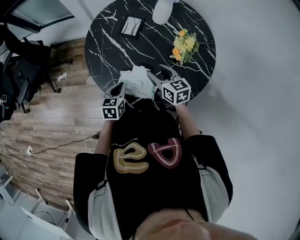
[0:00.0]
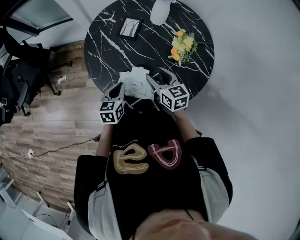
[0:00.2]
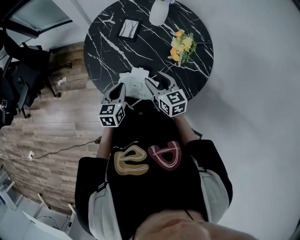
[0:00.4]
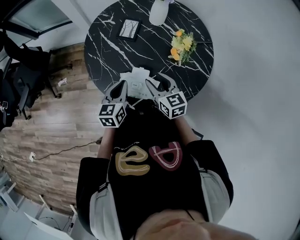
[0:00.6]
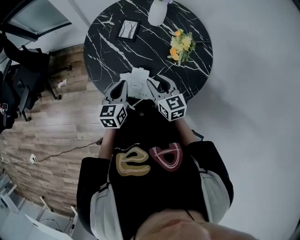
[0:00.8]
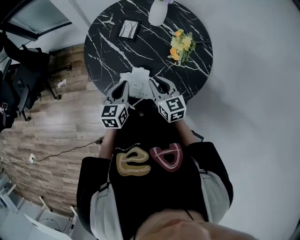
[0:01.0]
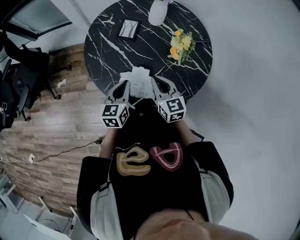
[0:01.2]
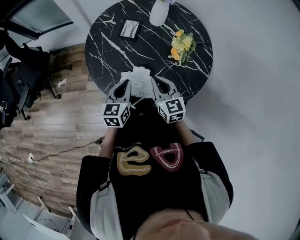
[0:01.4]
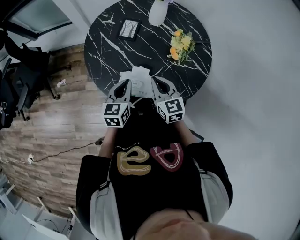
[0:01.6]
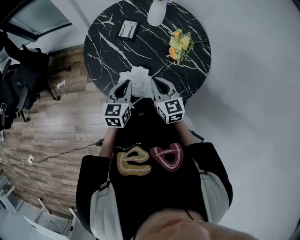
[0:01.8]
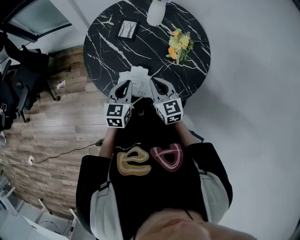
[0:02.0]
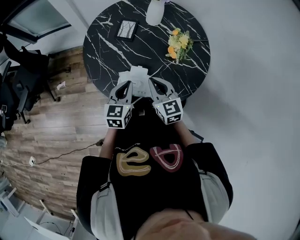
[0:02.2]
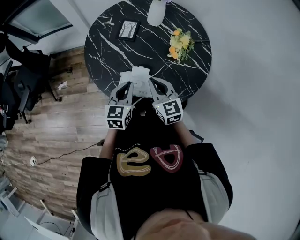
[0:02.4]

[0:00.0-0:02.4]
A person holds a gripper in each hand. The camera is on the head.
0:00.0 to 0:01.2: The right gripper moves roughly 5 cm, and closes, while the left gripper travels upward by some 10 cm.
0:01.2 to 0:02.4: There are only small adjustments of the grippers.

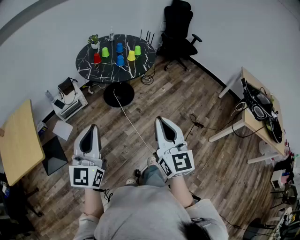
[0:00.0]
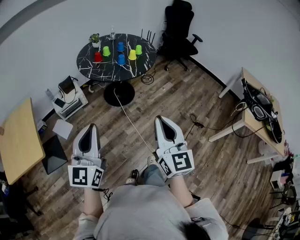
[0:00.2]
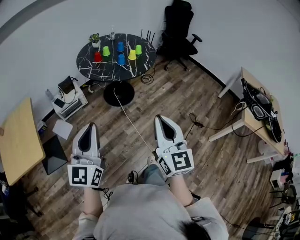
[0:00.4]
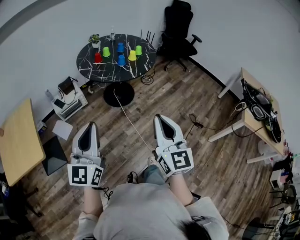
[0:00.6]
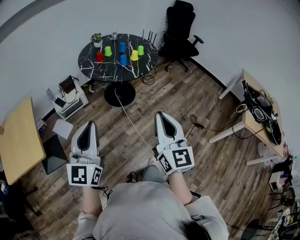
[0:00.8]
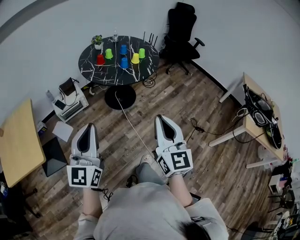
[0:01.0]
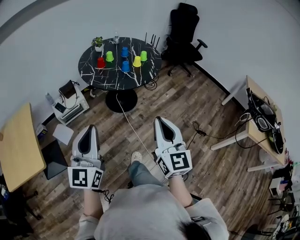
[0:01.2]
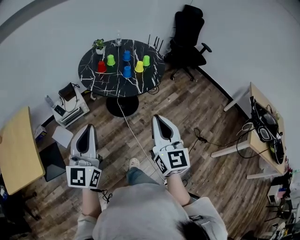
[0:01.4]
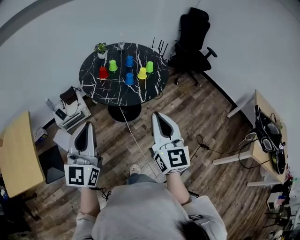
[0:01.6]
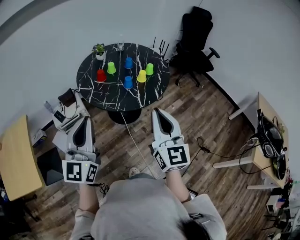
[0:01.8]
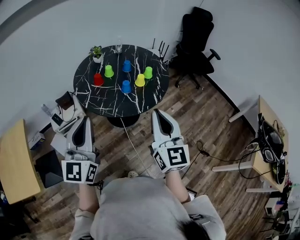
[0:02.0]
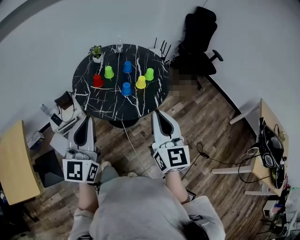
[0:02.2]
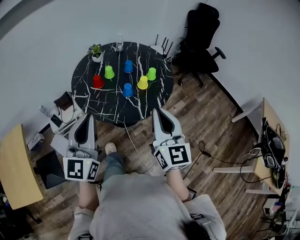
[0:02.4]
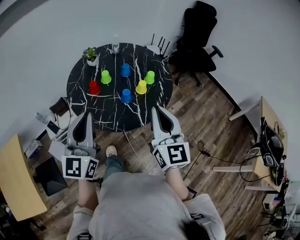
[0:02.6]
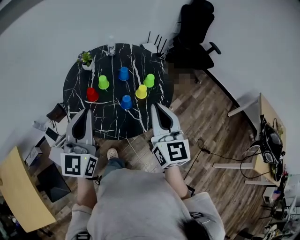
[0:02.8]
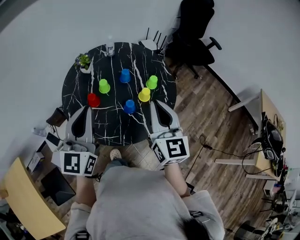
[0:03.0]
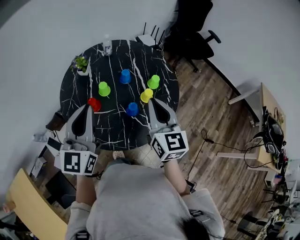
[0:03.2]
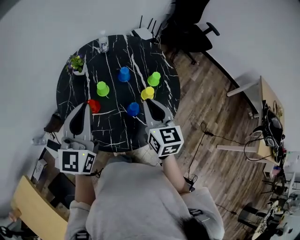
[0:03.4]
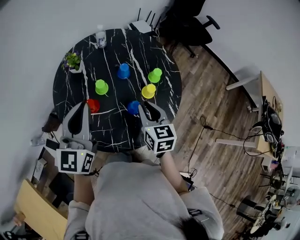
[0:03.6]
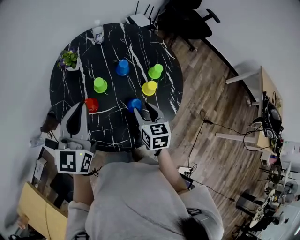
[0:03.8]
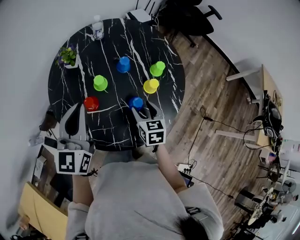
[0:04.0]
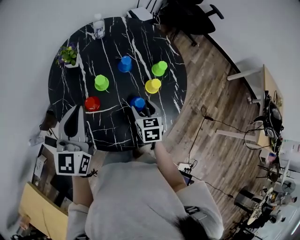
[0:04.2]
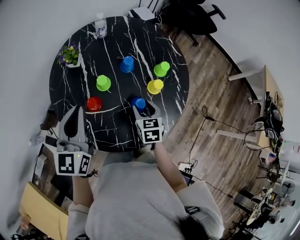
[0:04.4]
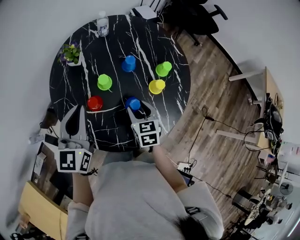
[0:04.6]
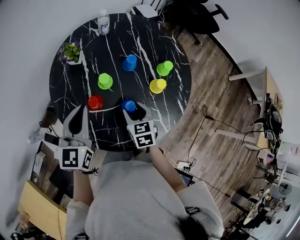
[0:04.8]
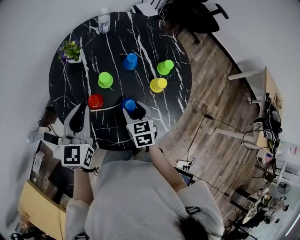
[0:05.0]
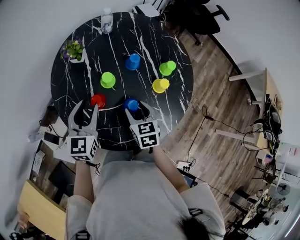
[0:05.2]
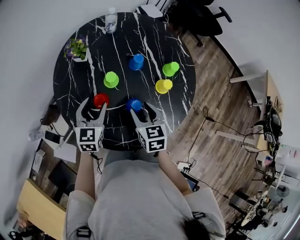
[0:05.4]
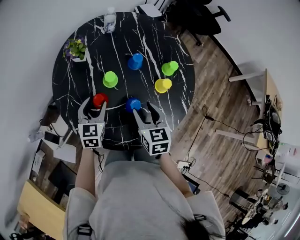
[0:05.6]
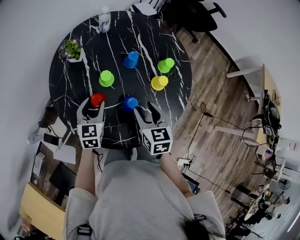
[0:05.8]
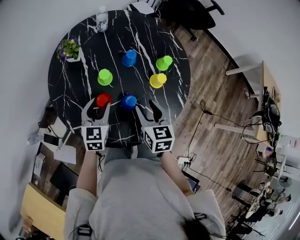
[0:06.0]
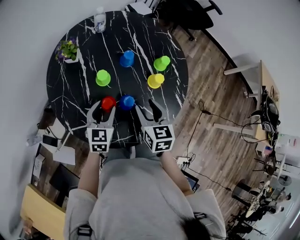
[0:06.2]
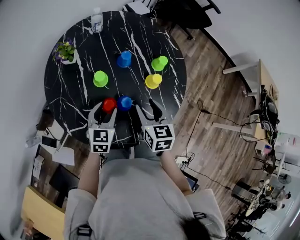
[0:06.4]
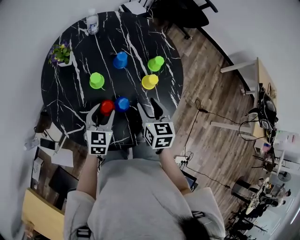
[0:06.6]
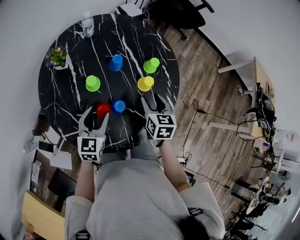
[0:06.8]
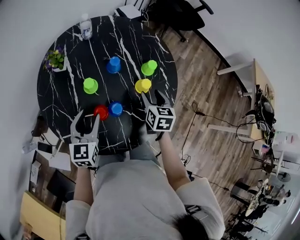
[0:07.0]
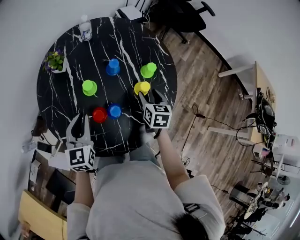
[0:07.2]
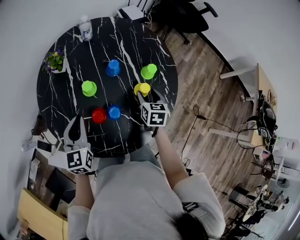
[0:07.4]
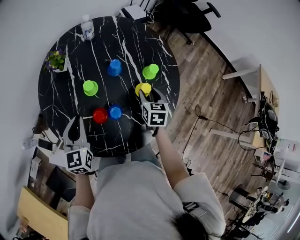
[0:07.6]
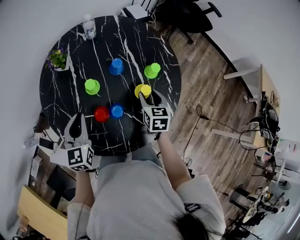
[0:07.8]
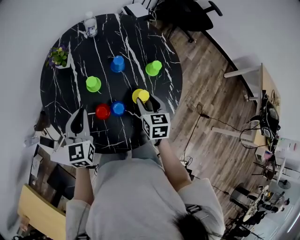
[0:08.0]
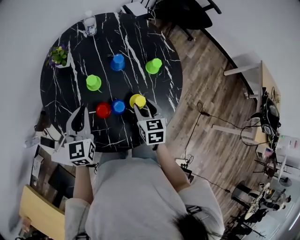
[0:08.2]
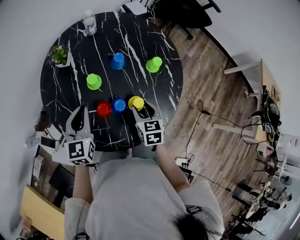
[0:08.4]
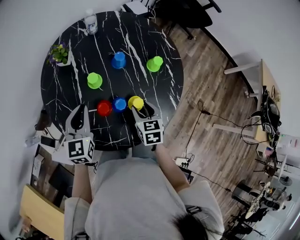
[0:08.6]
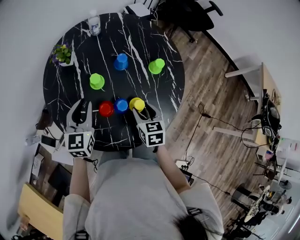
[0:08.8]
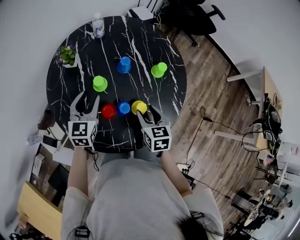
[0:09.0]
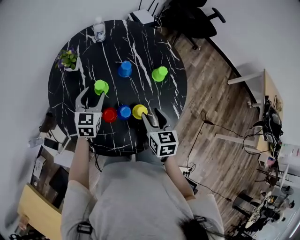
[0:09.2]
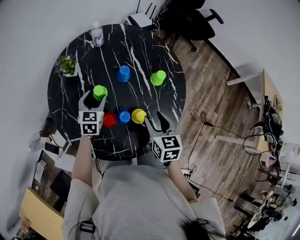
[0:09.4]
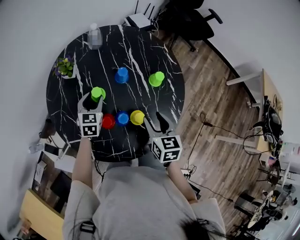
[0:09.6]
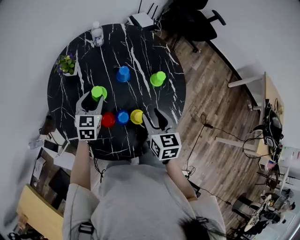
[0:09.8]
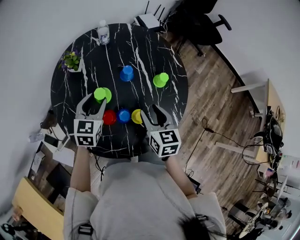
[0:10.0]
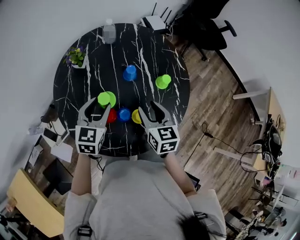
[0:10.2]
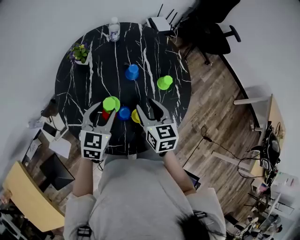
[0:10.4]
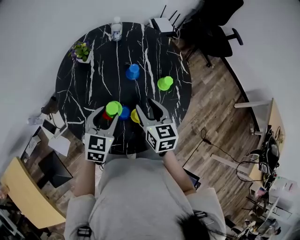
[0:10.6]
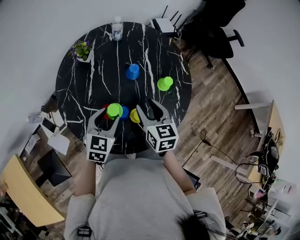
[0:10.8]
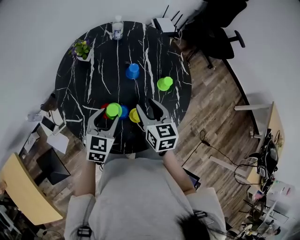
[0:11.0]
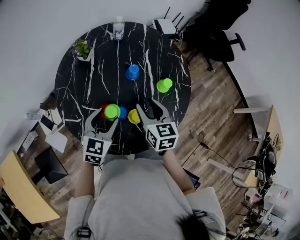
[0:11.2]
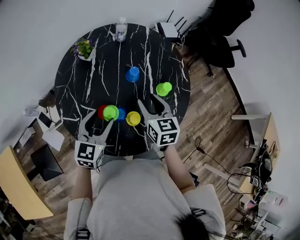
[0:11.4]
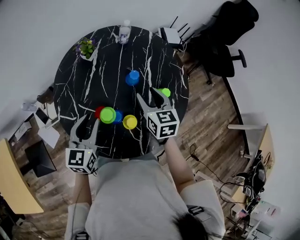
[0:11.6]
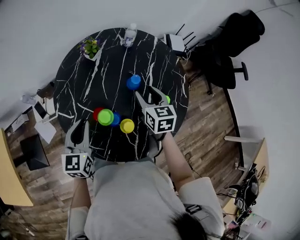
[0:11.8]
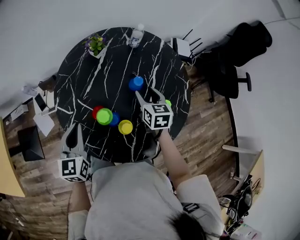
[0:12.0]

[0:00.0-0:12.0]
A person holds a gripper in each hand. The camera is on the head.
0:00.0 to 0:01.6: The grippers both shift forward by some 25 cm.
0:01.6 to 0:03.0: The two grippers go some 40 cm forward.
0:03.0 to 0:04.4: The right gripper goes roughly 30 cm downward, points its fingers about 40 degrees further downward, and opens. Meanwhile the left gripper is displaced forward, downward and to the left by approximately 20 cm.
0:04.4 to 0:06.0: The right gripper is displaced upward by approximately 5 cm; the left gripper heads downward, covering about 20 cm, turns by some 20 degrees, and opens its fingers.
0:06.0 to 0:07.6: The left gripper is displaced upward by roughly 5 cm, reaches about 5 cm to the right, then returns, and closes up. The right gripper moves forward, to the right and downward, about 15 cm.
0:07.6 to 0:09.0: The right gripper heads backward and to the left, covering some 10 cm, while the left gripper goes roughly 5 cm forward, and opens its fingers.
0:09.0 to 0:10.4: The left gripper moves to the right, roughly 5 cm, and goes downward and returns, approximately 10 cm each way. The right gripper goes roughly 10 cm upward and forward.
0:10.4 to 0:12.0: The left gripper ends up some 10 cm from where it was, changes its angle by roughly 50 degrees, and closes its fingers. The right gripper moves some 15 cm, and turns by some 20 degrees.

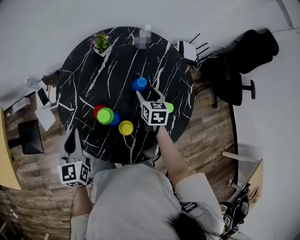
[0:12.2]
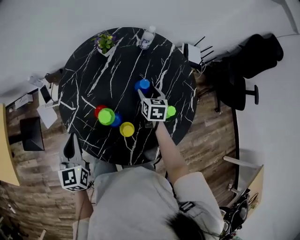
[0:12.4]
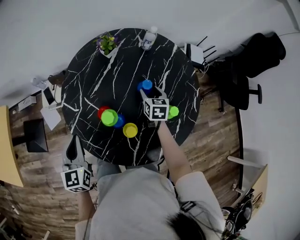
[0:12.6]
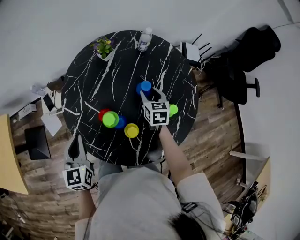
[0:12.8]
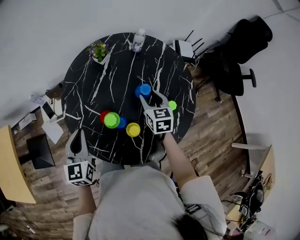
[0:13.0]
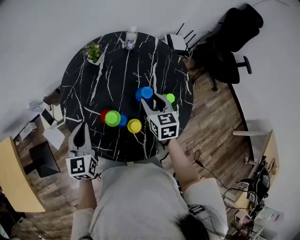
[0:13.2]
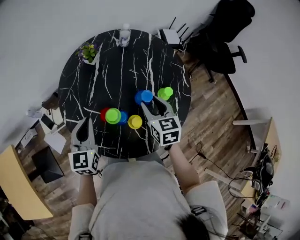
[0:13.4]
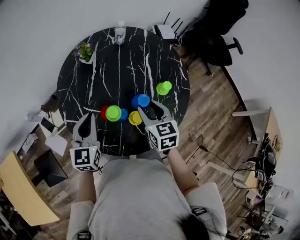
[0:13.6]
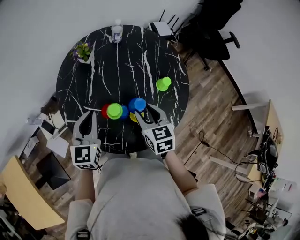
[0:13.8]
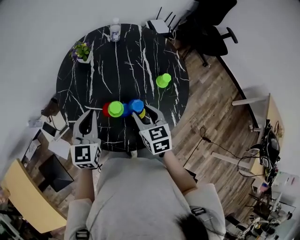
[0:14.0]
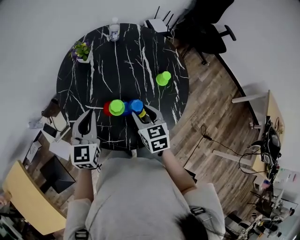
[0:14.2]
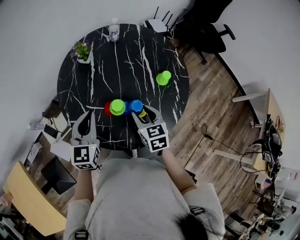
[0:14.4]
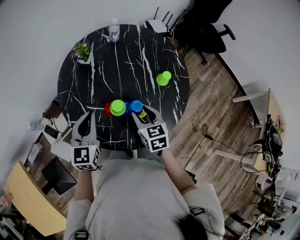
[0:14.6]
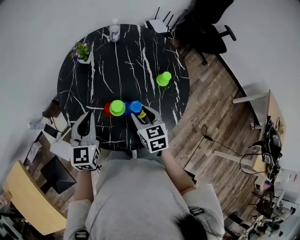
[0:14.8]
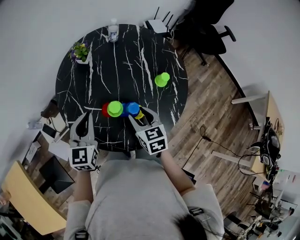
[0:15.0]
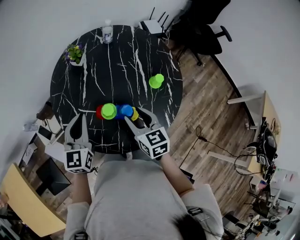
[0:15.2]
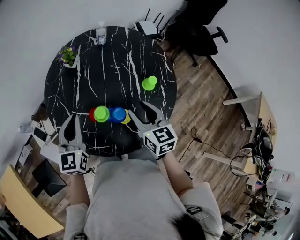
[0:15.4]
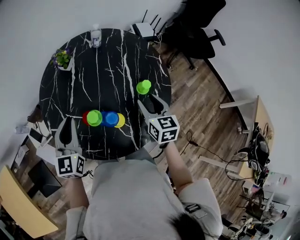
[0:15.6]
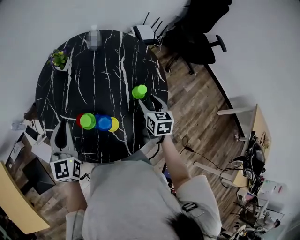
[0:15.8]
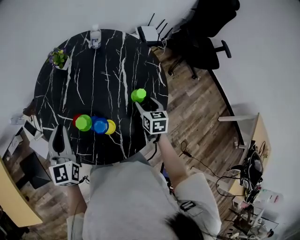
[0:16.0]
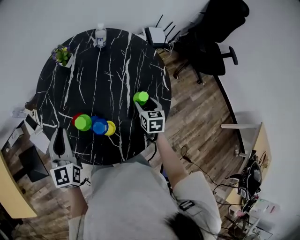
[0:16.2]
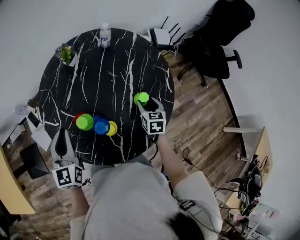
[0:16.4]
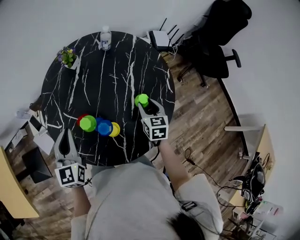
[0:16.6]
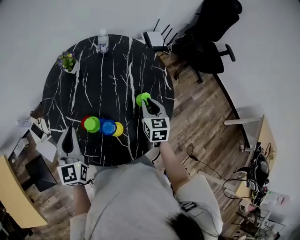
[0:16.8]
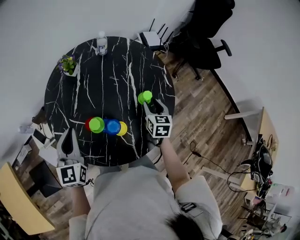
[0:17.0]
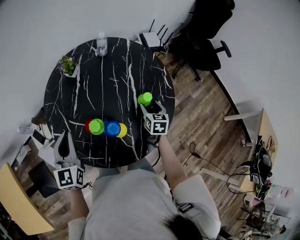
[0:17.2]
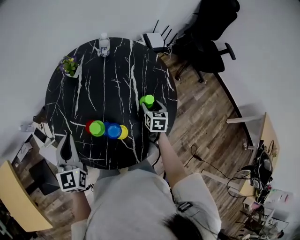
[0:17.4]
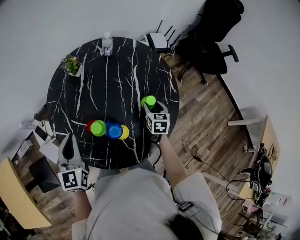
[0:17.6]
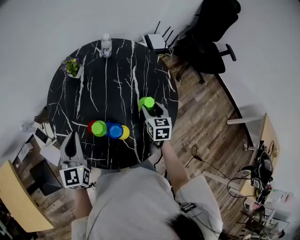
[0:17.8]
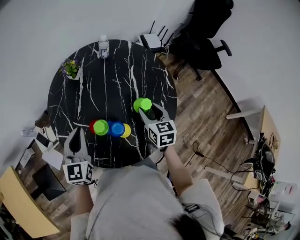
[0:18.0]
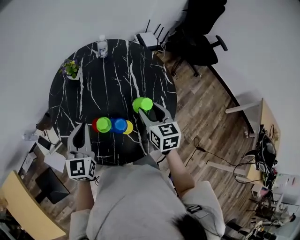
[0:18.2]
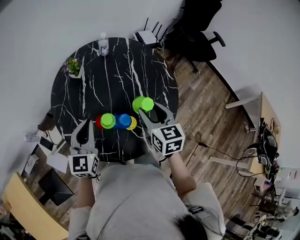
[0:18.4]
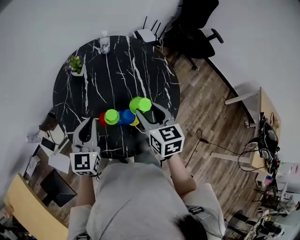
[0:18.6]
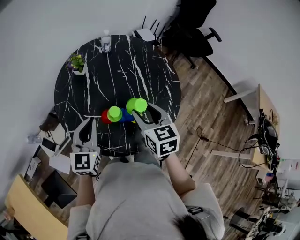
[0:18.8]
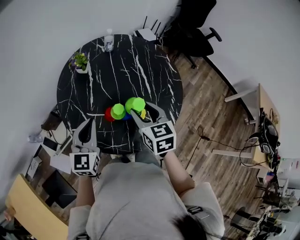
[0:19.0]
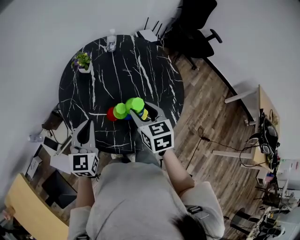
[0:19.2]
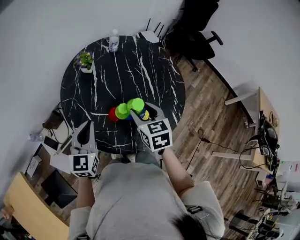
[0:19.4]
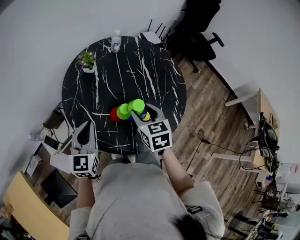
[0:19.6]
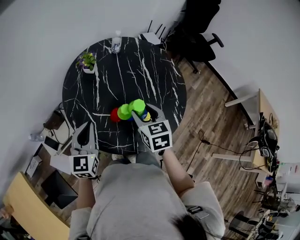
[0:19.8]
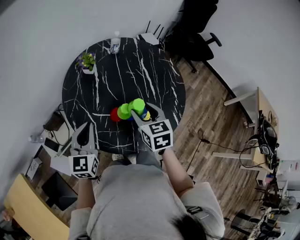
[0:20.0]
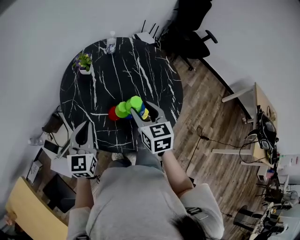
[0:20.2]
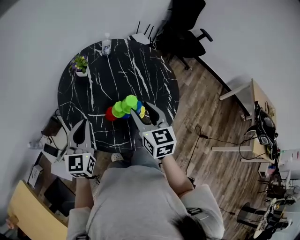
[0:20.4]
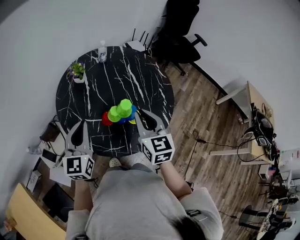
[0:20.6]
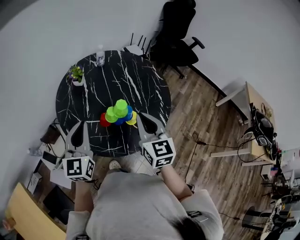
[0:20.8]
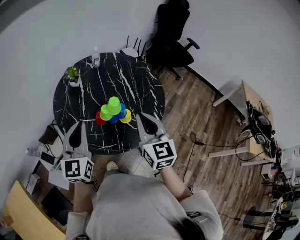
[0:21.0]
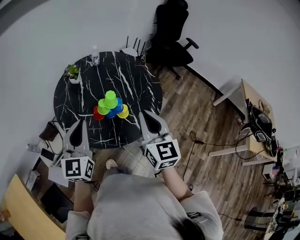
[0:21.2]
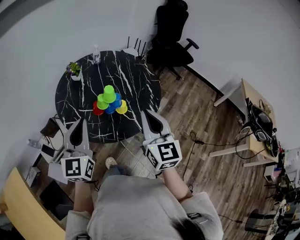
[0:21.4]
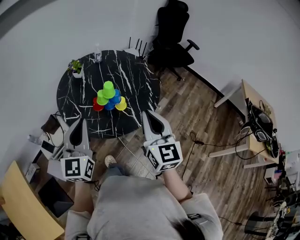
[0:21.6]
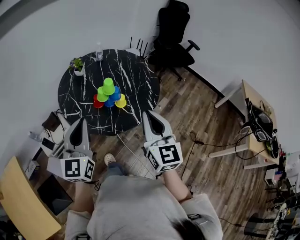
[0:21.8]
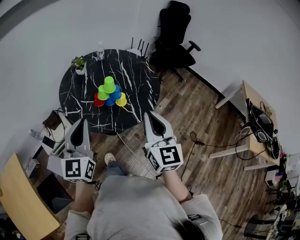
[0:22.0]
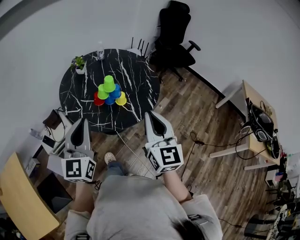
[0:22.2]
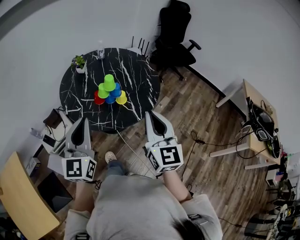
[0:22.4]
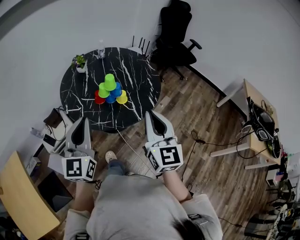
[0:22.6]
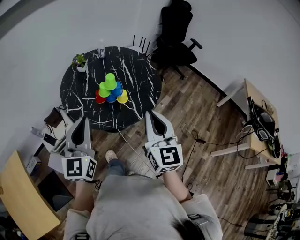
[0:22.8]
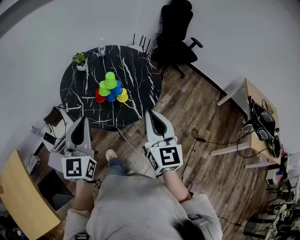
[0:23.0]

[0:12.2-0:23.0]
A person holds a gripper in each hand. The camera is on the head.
0:12.2 to 0:13.8: The right gripper is displaced backward, upward and to the left by approximately 20 cm; the left gripper travels forward by some 5 cm, and rotates approximately 30 degrees.
0:13.8 to 0:15.2: The grippers make only small movements.
0:15.2 to 0:16.8: The right gripper moves to the right and forward, some 20 cm, and closes up.
0:16.8 to 0:18.4: The right gripper goes approximately 15 cm upward, backward and to the left, and opens.
0:18.4 to 0:20.0: Both grippers move to the left, some 10 cm.
0:20.0 to 0:21.4: The left gripper is displaced upward, backward and to the right by approximately 20 cm; the right gripper heads backward, upward and to the right, covering roughly 30 cm, tips its fingers upward by about 30 degrees, and closes its fingers.
0:21.4 to 0:23.0: The grippers both shift backward by about 10 cm.
